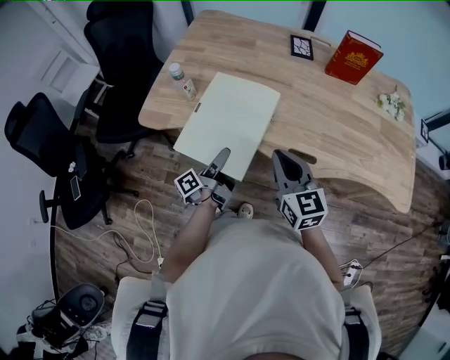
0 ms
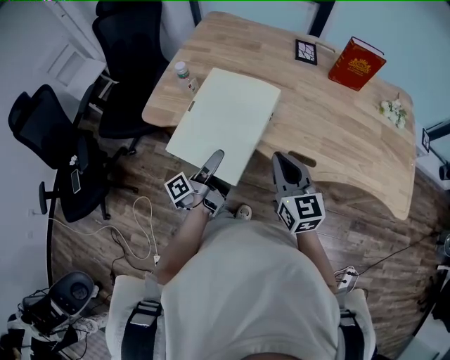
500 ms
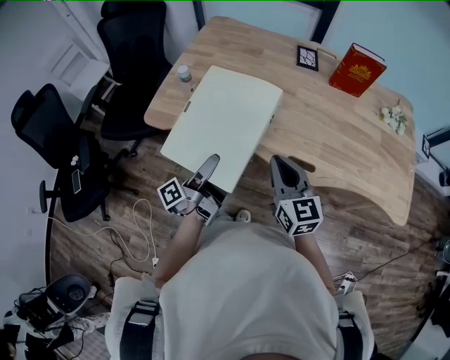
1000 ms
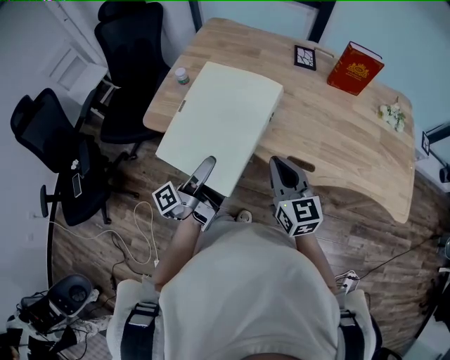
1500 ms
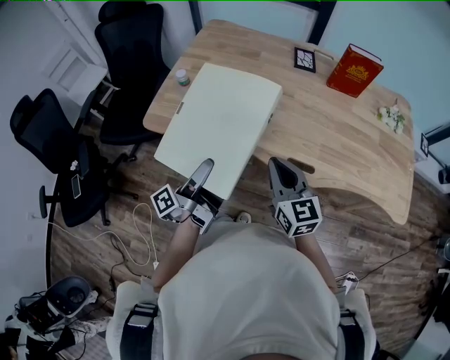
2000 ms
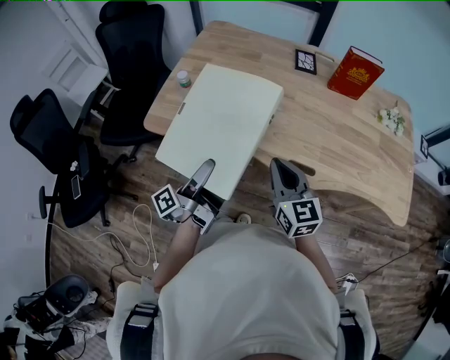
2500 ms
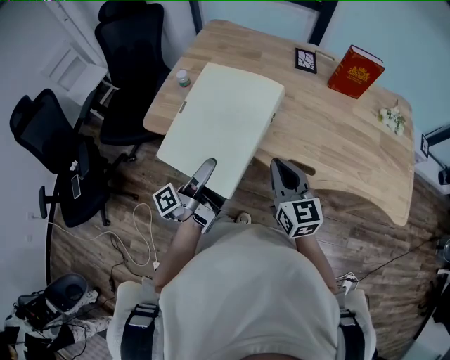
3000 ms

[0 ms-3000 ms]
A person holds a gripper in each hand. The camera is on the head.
0 ms to 1500 ms: The left gripper shifts about 10 cm upward.
1500 ms to 3000 ms: Neither gripper changes place.

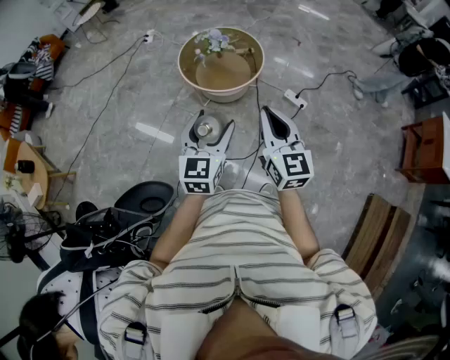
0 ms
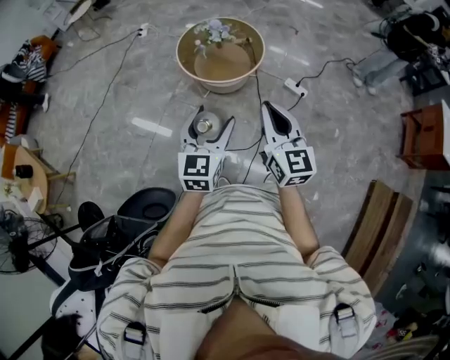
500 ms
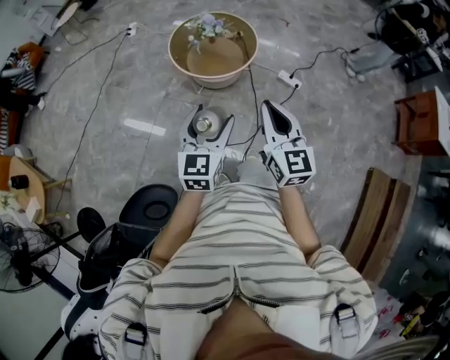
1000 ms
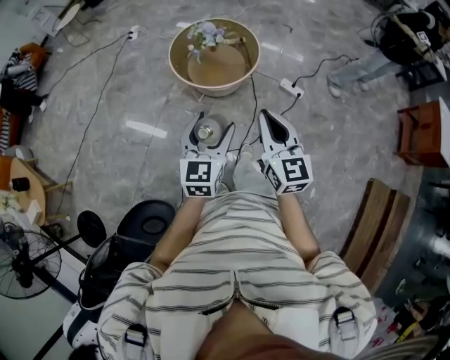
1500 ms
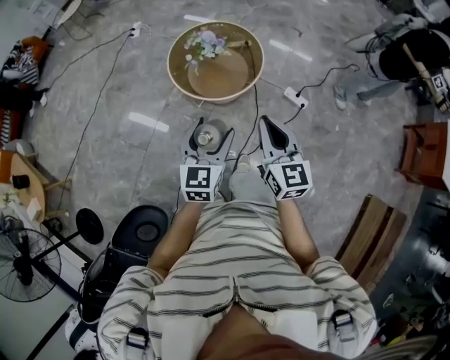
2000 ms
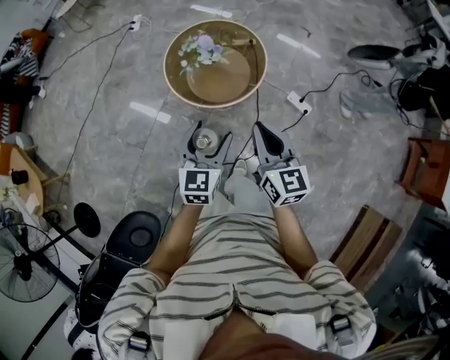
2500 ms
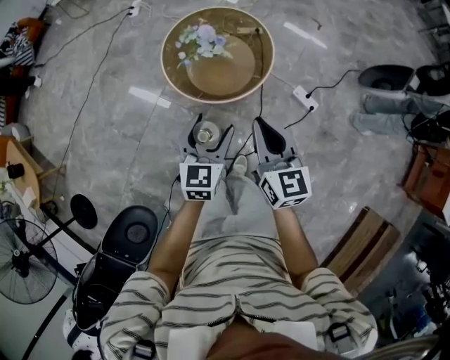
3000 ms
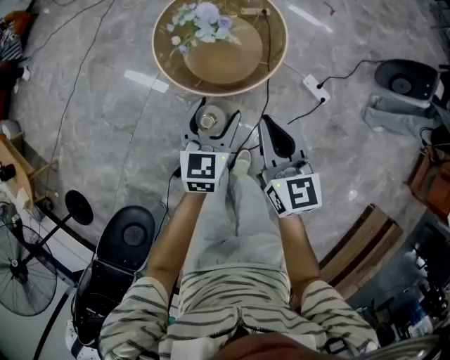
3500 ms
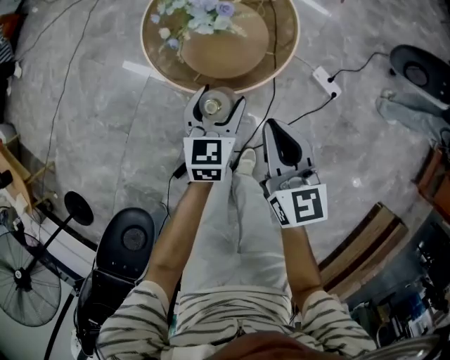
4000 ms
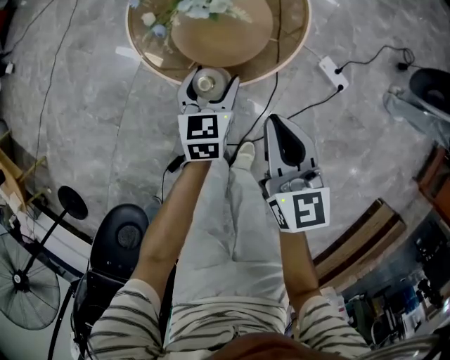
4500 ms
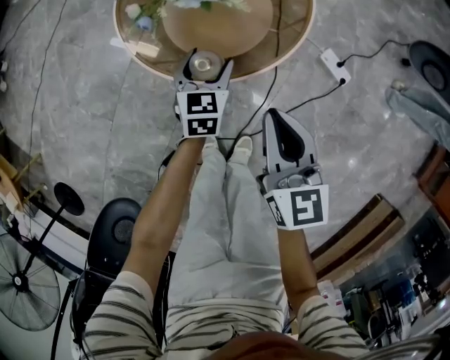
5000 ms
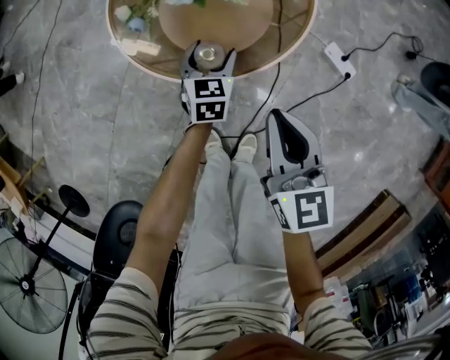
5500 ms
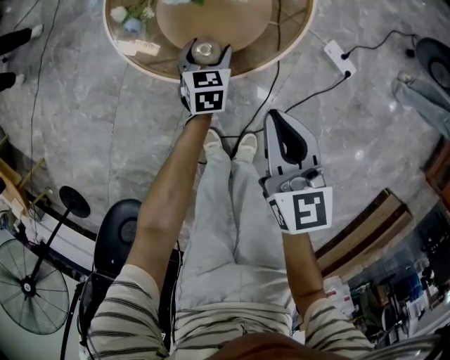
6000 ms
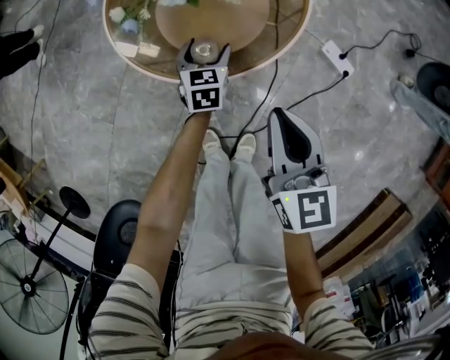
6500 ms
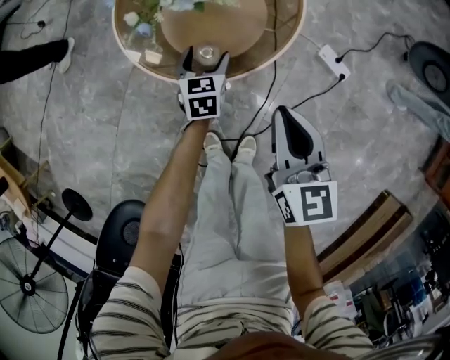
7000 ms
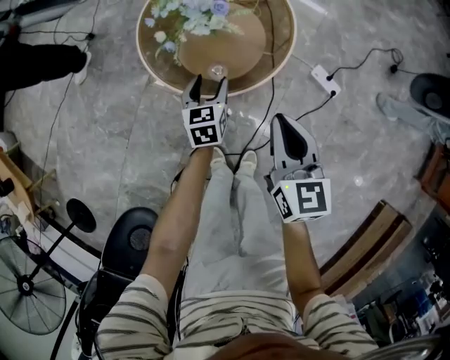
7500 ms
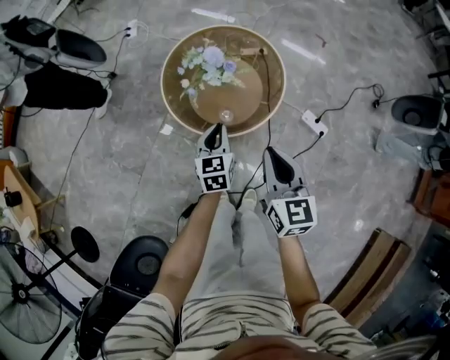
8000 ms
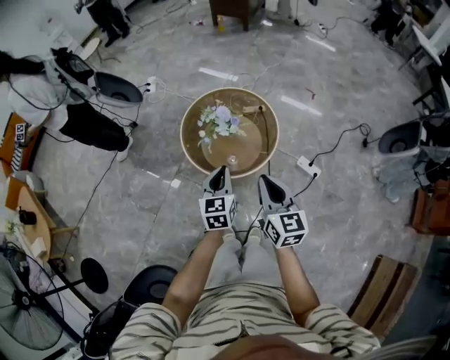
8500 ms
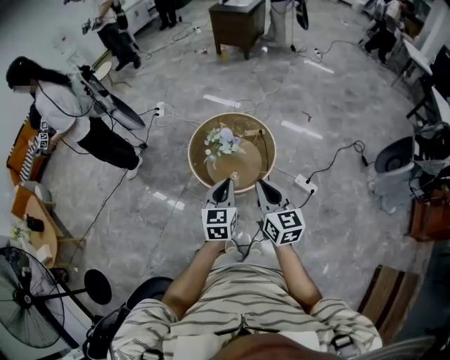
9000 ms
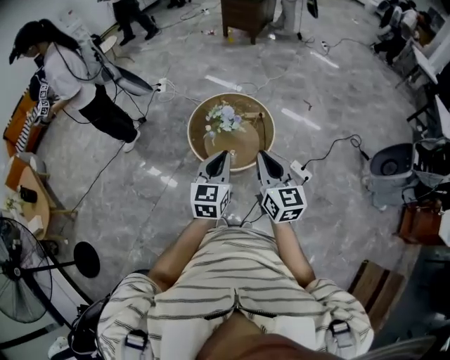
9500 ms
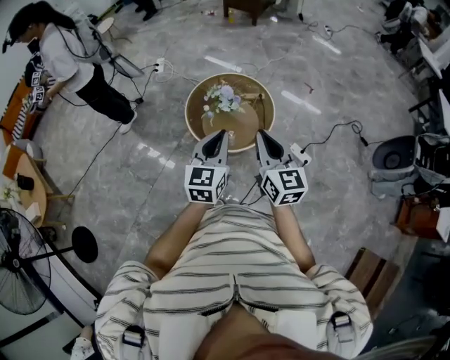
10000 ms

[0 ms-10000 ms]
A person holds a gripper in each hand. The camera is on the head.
0 ms to 2000 ms: Both grippers move forward, some 15 cm.
2000 ms to 4000 ms: Both grippers travel together downward and forward, about 35 cm.
4000 ms to 6000 ms: The right gripper goes approximately 15 cm downward; the left gripper heads downward and forward, covering some 25 cm.
6000 ms to 8000 ms: Both grippers travel together upward, about 25 cm. The left gripper closes up.
8000 ms to 10000 ms: The two grippers go approximately 30 cm upward. The left gripper changes its angle by approximately 20 degrees.

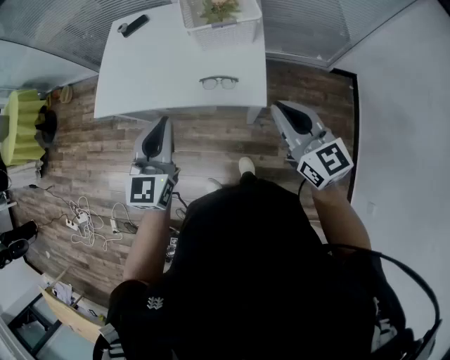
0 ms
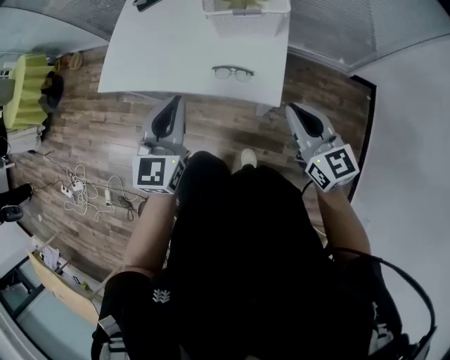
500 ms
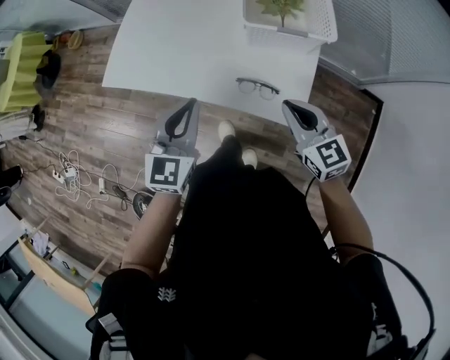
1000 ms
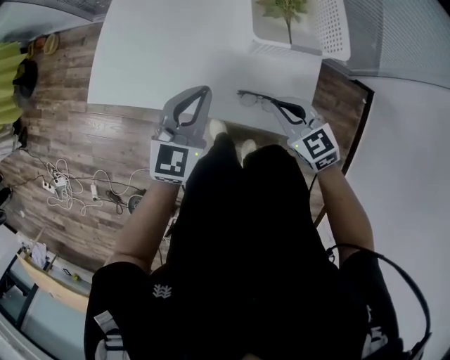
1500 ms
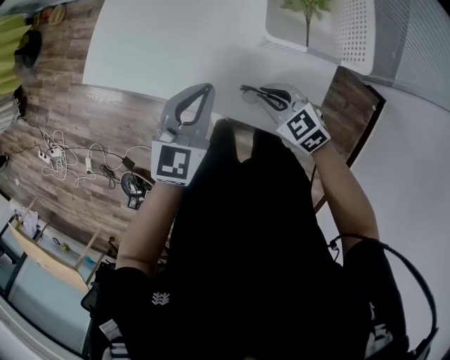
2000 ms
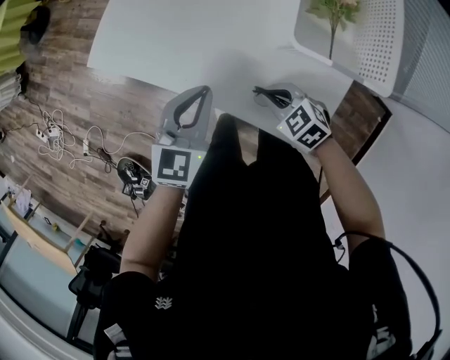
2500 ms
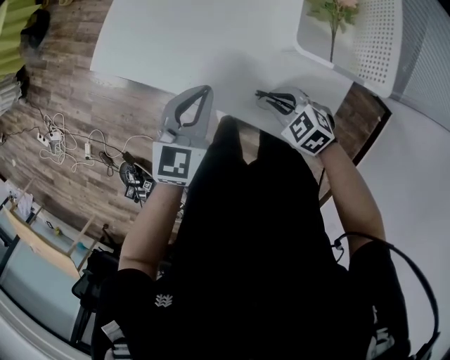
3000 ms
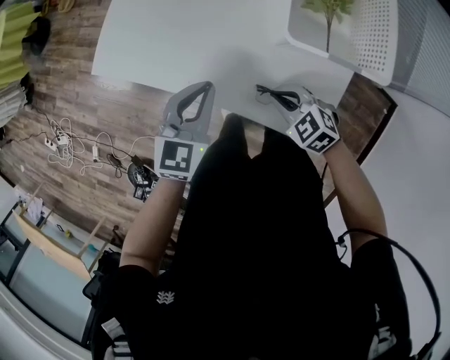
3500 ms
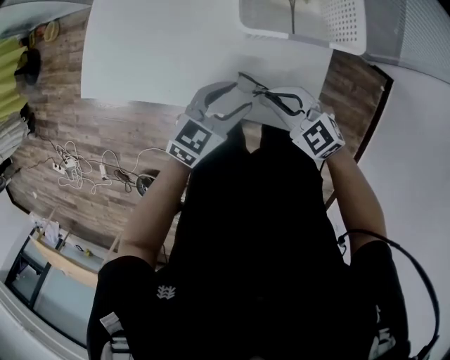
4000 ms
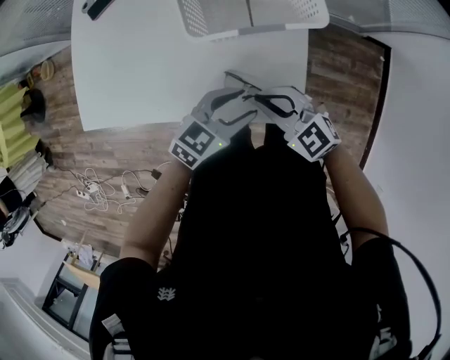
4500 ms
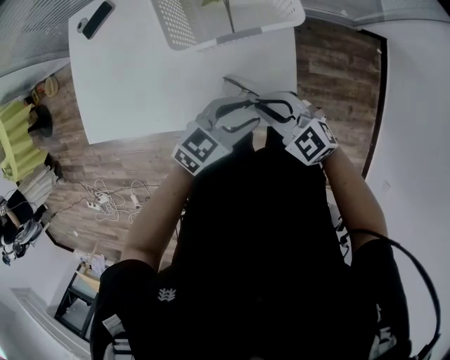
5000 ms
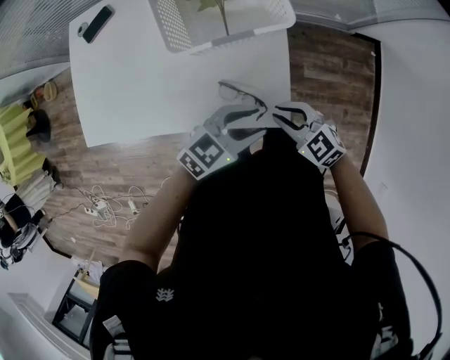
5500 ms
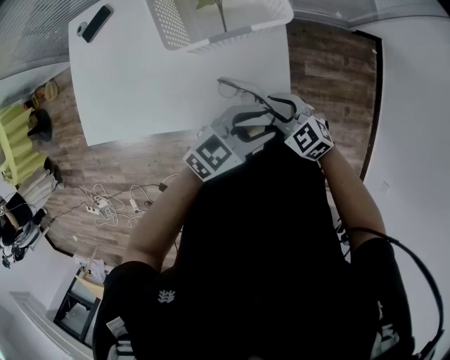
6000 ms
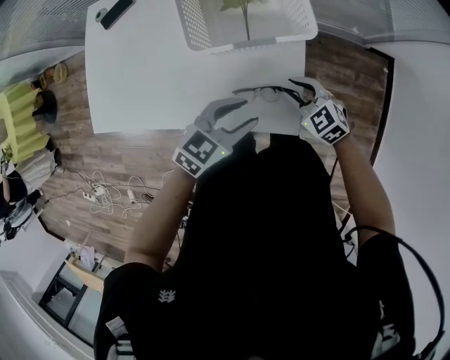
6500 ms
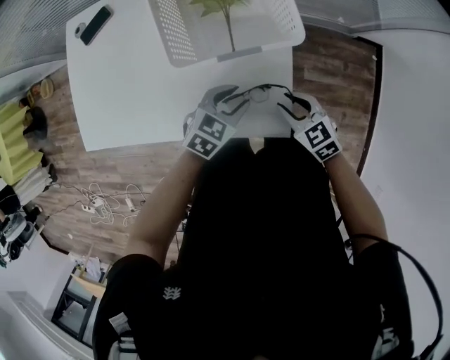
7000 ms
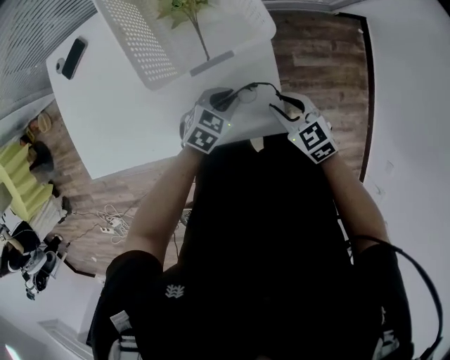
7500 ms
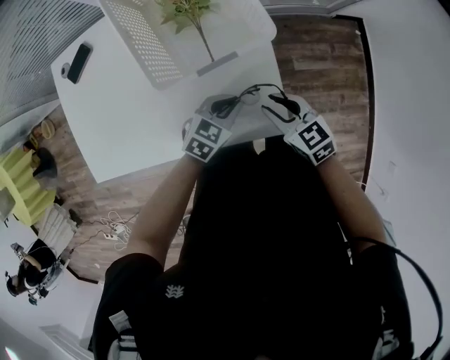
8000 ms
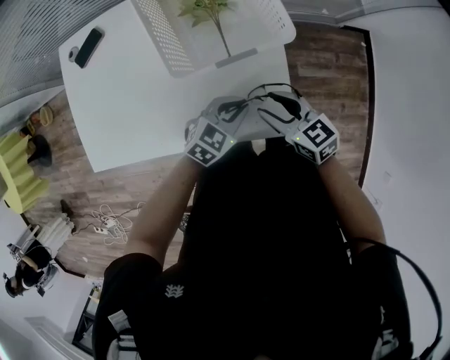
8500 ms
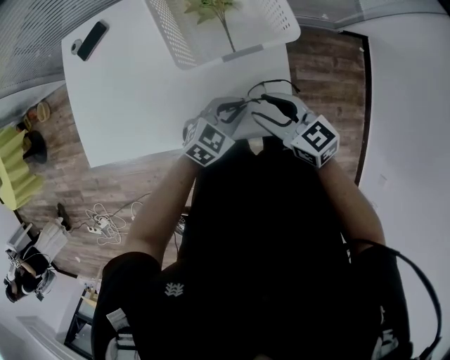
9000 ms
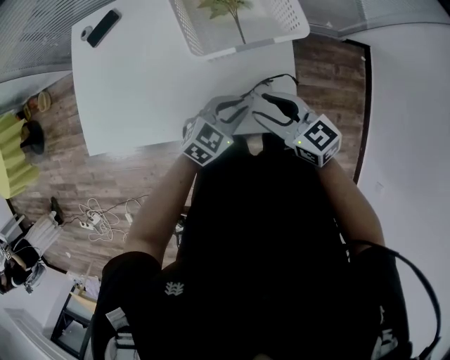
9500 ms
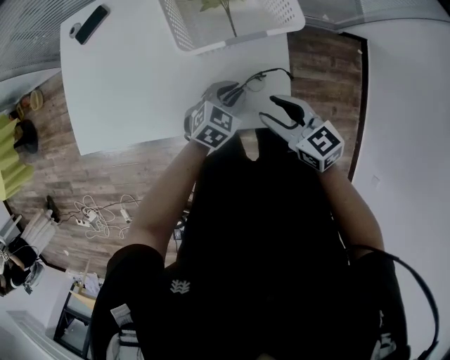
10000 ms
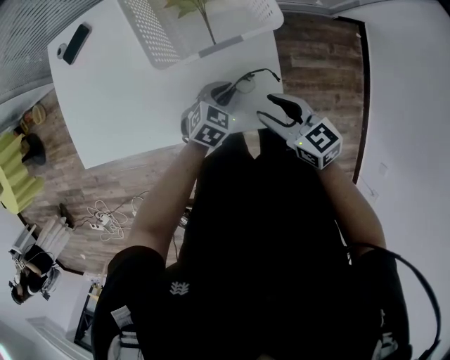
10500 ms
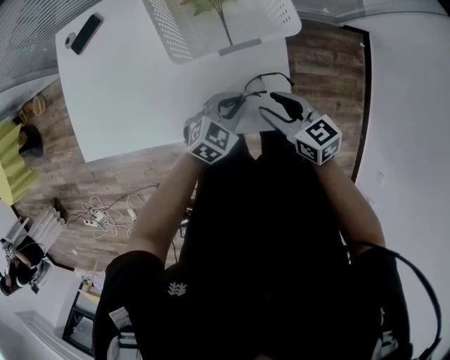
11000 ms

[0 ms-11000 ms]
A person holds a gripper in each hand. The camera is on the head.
0 ms to 2000 ms: The left gripper shifts approximately 30 cm forward and downward; the right gripper moves forward, downward and to the left, about 40 cm, and tips its fingers downward by some 30 degrees.
2000 ms to 3500 ms: The left gripper changes place by about 5 cm.
3500 ms to 5500 ms: The right gripper shifts by approximately 15 cm, and rotates some 30 degrees. The left gripper moves roughly 30 cm, turns by some 60 degrees, and opens.
5500 ms to 7500 ms: The right gripper changes place by roughly 5 cm, and rotates approximately 20 degrees, while the left gripper shifts some 15 cm downward, rotates approximately 20 degrees, and closes up.
7500 ms to 9000 ms: The left gripper travels upward by some 5 cm; the right gripper is displaced upward and to the left by about 10 cm, and swivels about 20 degrees.
9000 ms to 11000 ms: The left gripper travels downward and back again, some 5 cm each way.

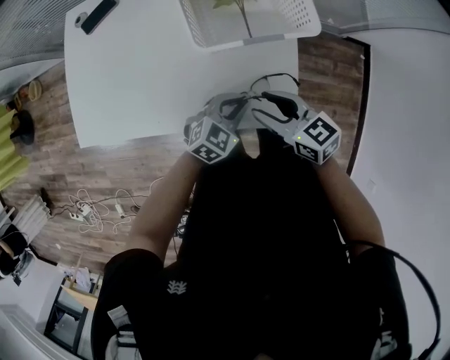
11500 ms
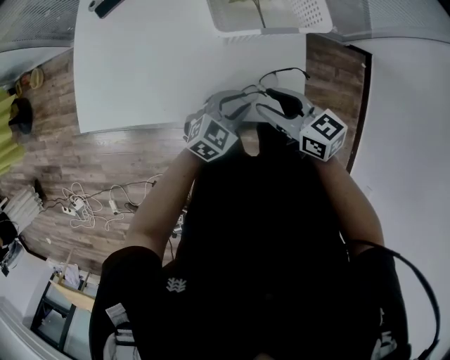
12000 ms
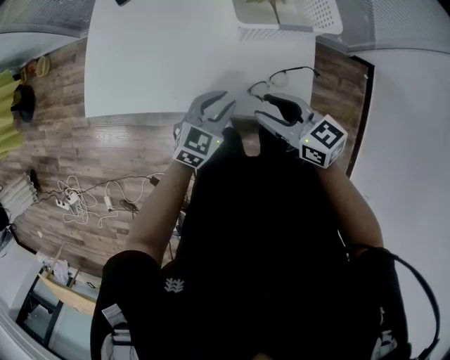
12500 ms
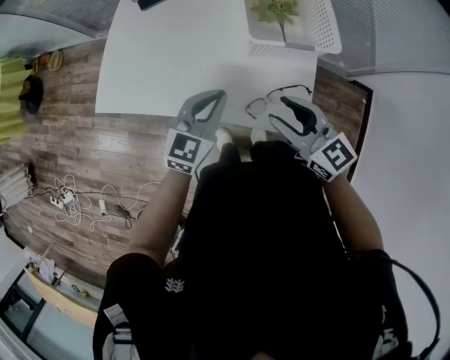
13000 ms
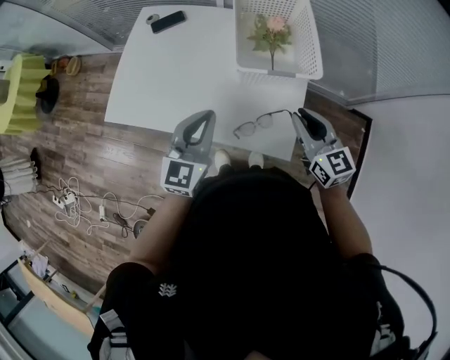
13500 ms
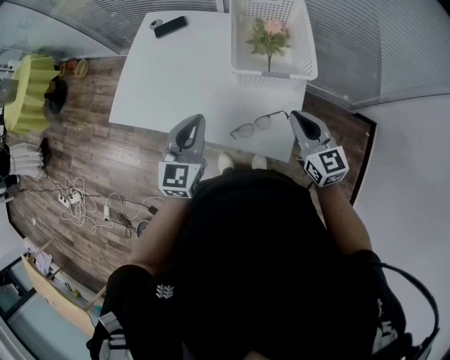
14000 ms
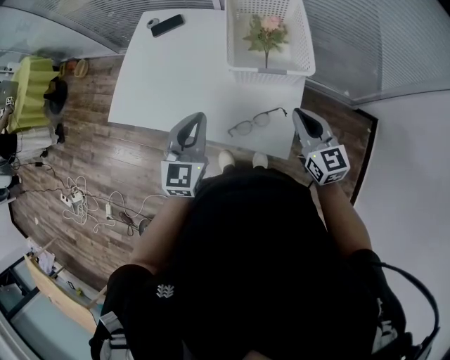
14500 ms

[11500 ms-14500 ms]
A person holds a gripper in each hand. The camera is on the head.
11500 ms to 13000 ms: The left gripper heads upward and to the left, covering about 20 cm, and changes its angle by roughly 40 degrees. The right gripper is displaced upward by approximately 10 cm, and changes its angle by approximately 20 degrees.
13000 ms to 14500 ms: The right gripper is displaced to the right by roughly 15 cm, and closes. Meanwhile the left gripper is displaced upward by some 5 cm, and changes its angle by some 20 degrees.
